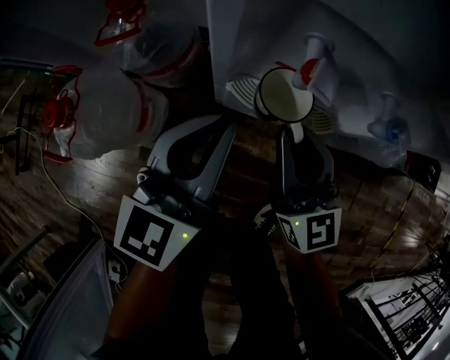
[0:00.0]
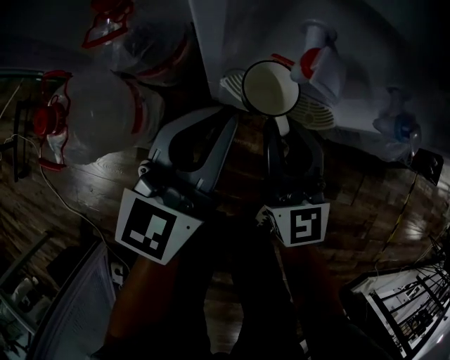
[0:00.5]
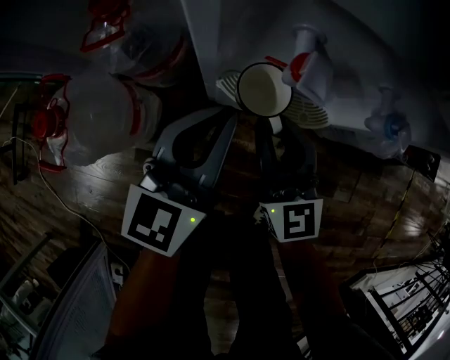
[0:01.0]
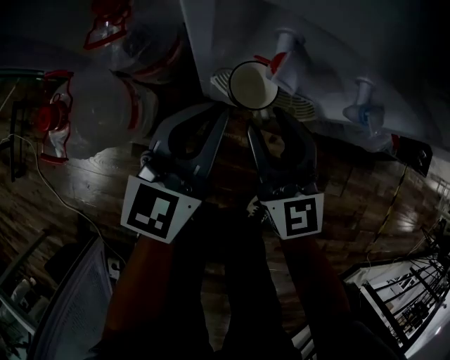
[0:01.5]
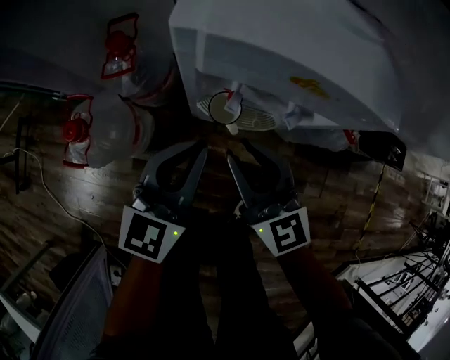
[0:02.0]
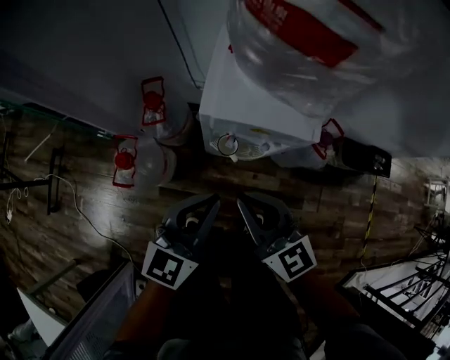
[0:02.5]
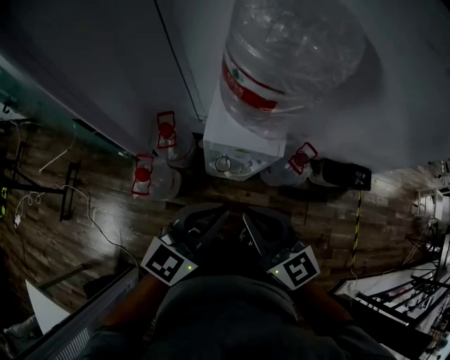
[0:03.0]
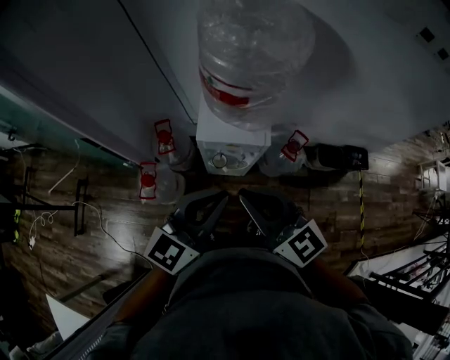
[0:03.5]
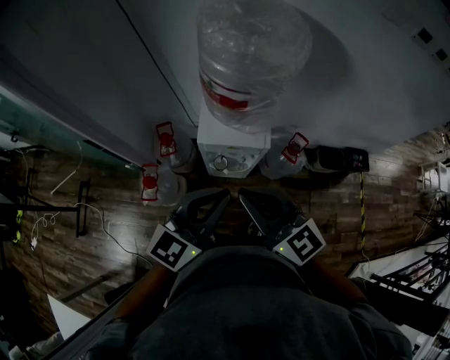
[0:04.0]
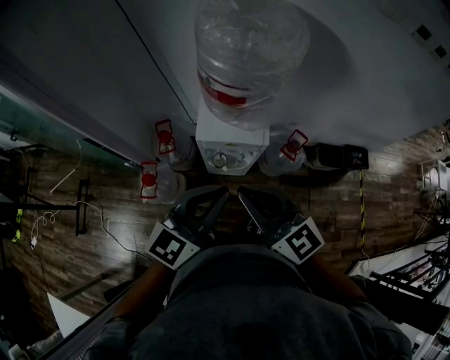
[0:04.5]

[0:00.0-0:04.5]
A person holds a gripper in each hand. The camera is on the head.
0:00.0 to 0:02.0: The two grippers go some 10 cm upward.
0:02.0 to 0:04.5: Both grippers travel together upward, some 50 cm. The right gripper closes, while the left gripper changes its angle by roughly 20 degrees.

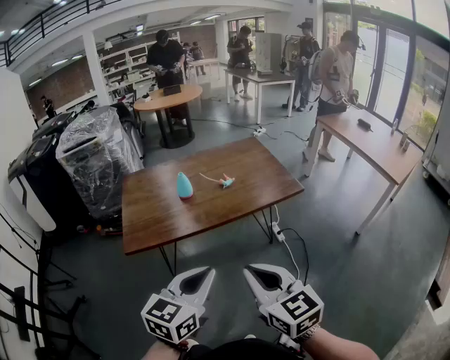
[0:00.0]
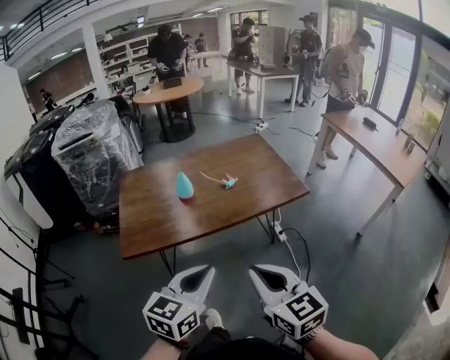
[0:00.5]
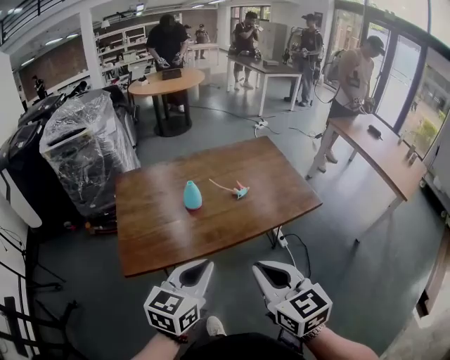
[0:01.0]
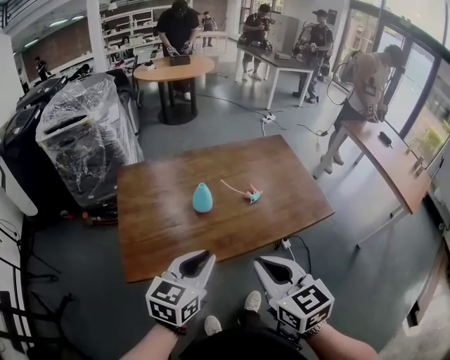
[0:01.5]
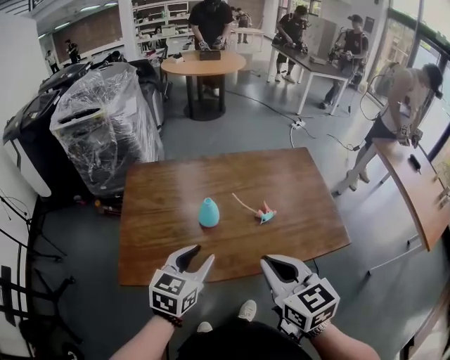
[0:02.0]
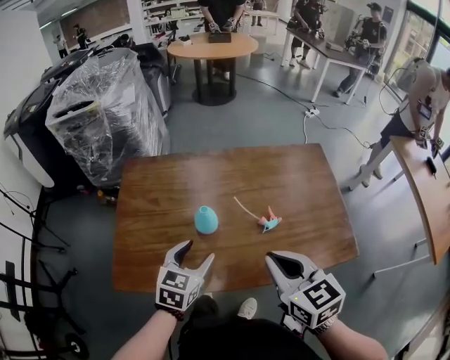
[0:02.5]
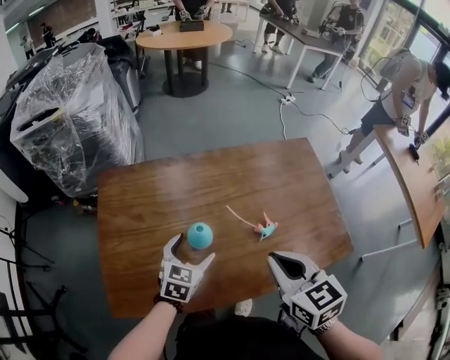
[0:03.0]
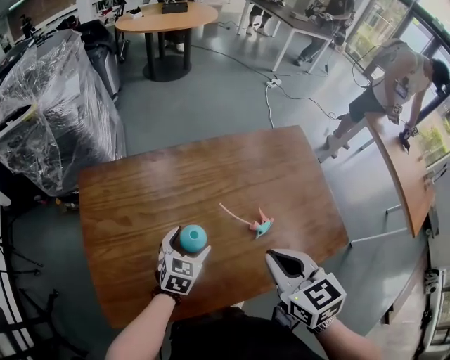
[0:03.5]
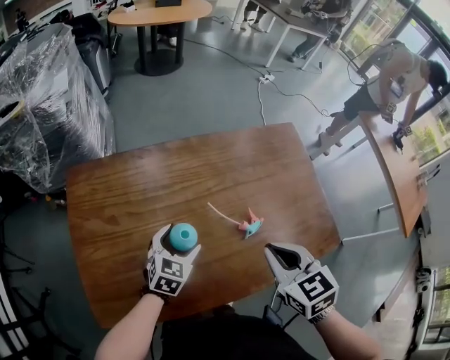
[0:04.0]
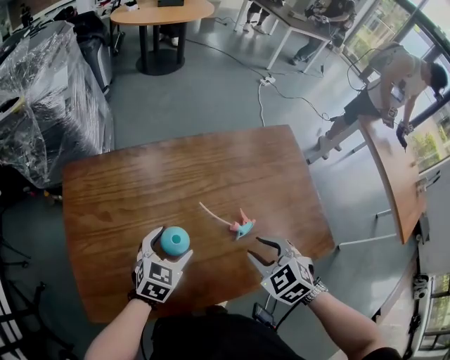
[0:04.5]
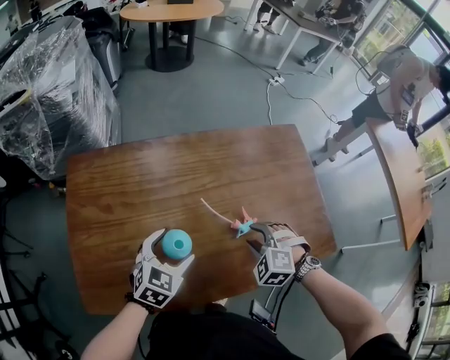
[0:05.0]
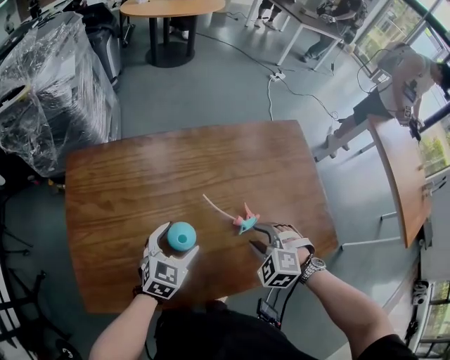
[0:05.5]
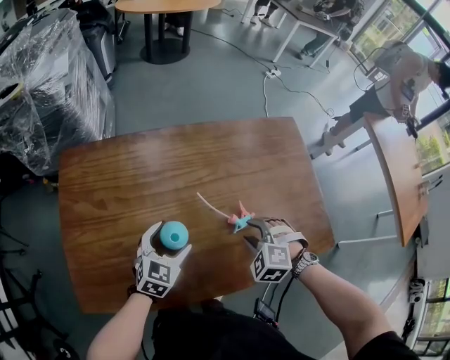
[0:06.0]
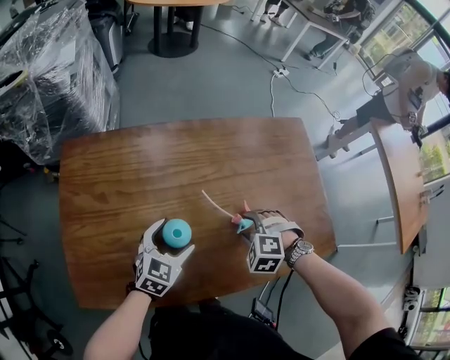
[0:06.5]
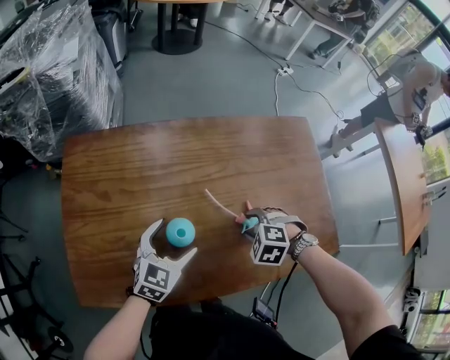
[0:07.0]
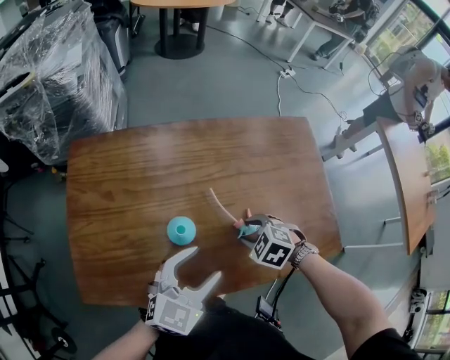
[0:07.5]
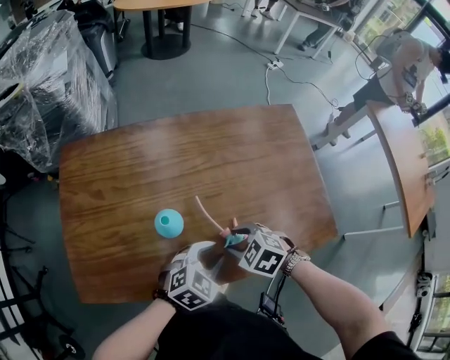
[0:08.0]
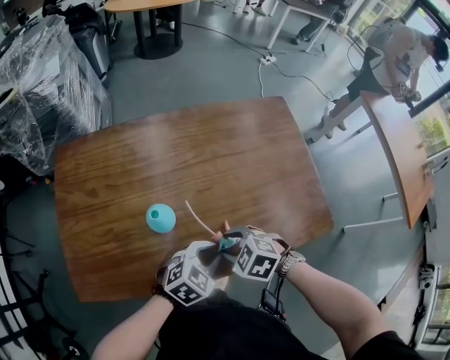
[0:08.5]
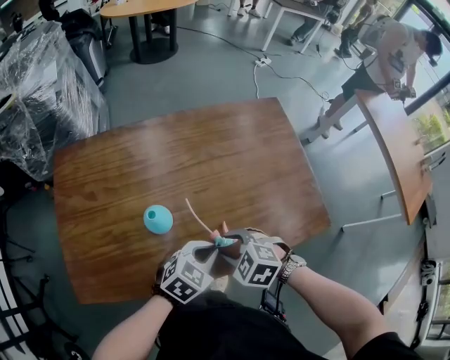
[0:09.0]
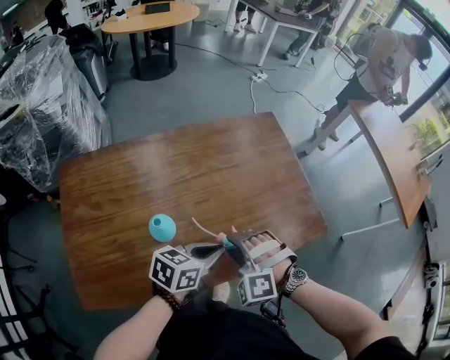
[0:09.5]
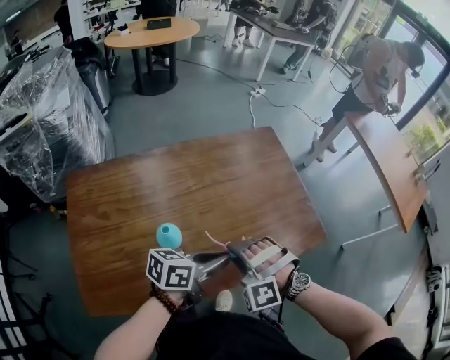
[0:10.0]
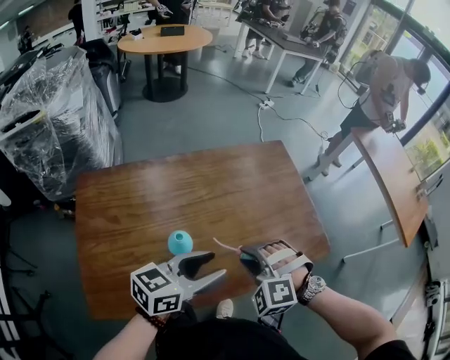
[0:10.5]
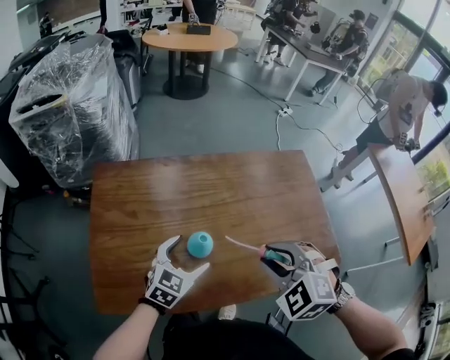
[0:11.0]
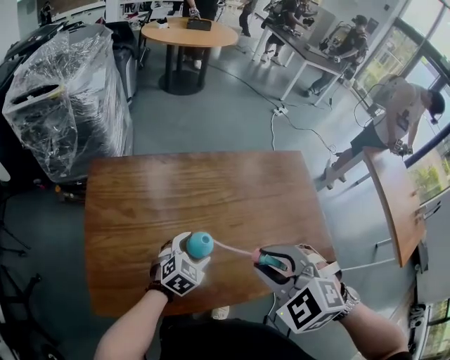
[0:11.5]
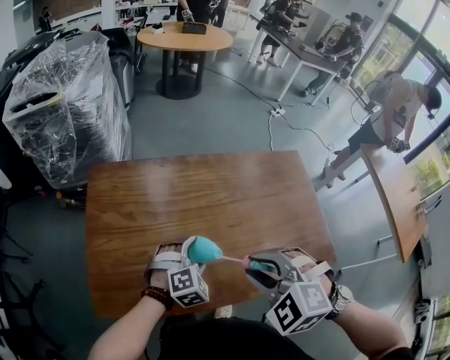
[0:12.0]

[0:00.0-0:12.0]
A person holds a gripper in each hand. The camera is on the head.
0:00.0 to 0:02.0: The two grippers go approximately 35 cm forward.
0:02.0 to 0:04.0: Both grippers travel together forward and downward, about 20 cm. The left gripper turns by about 20 degrees, and opens its fingers. Meanwhile the right gripper turns by approximately 20 degrees.
0:04.0 to 0:06.0: The right gripper is displaced downward by some 15 cm, rotates around the line of its fingers by approximately 60 degrees, counterclockwise from behind, and opens its fingers.
0:06.0 to 0:08.0: The right gripper moves about 10 cm, and rotates approximately 30 degrees. The left gripper travels upward and back again, some 10 cm each way, changes its angle by roughly 20 degrees, and closes.
0:08.0 to 0:10.0: The two grippers go some 10 cm upward. The left gripper points its fingers about 30 degrees further upward. The right gripper changes its angle by approximately 60 degrees.
0:10.0 to 0:12.0: The right gripper heads upward, covering roughly 10 cm, and changes its angle by some 30 degrees. The left gripper moves roughly 20 cm, points its fingers about 40 degrees further downward, and opens its fingers.

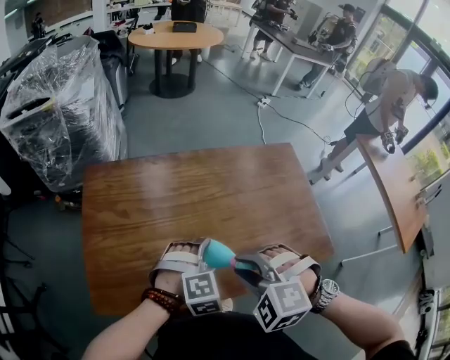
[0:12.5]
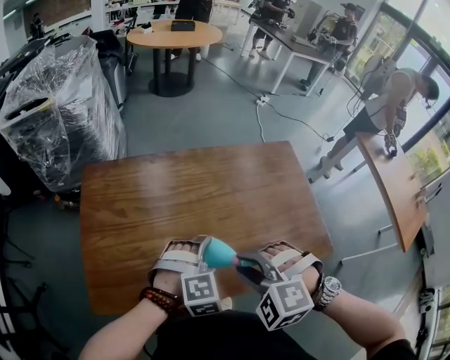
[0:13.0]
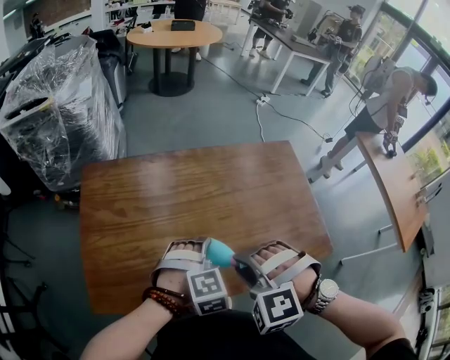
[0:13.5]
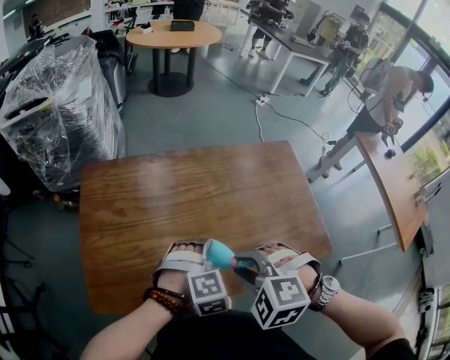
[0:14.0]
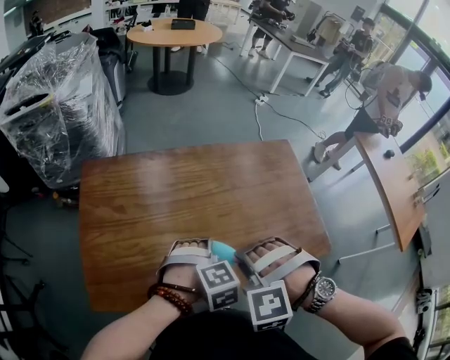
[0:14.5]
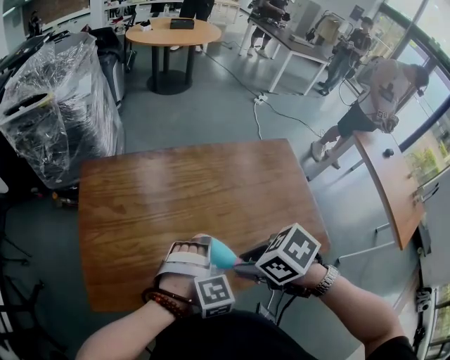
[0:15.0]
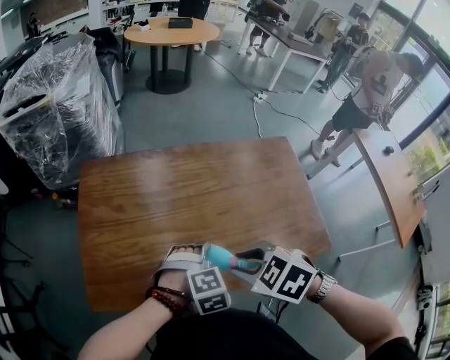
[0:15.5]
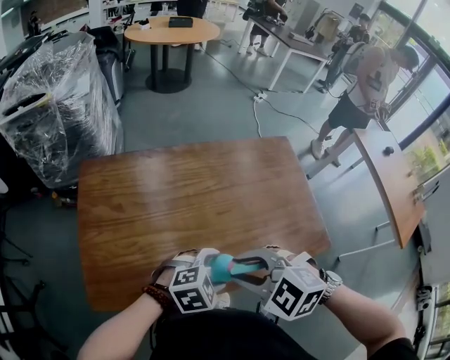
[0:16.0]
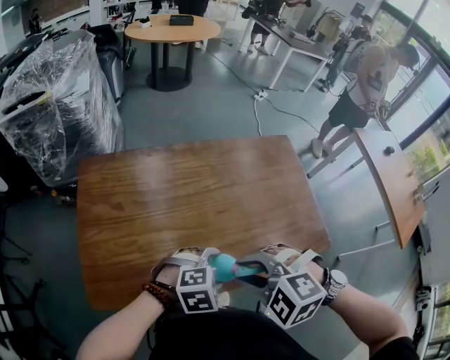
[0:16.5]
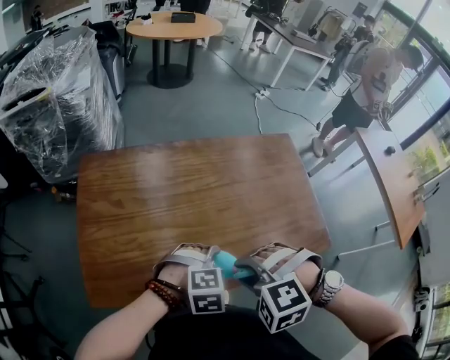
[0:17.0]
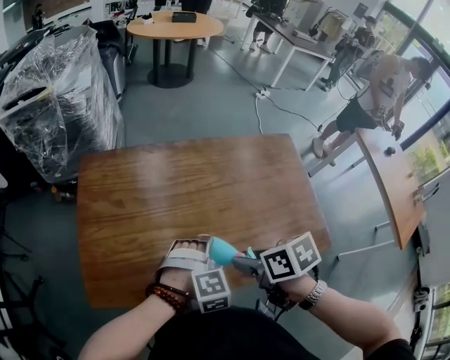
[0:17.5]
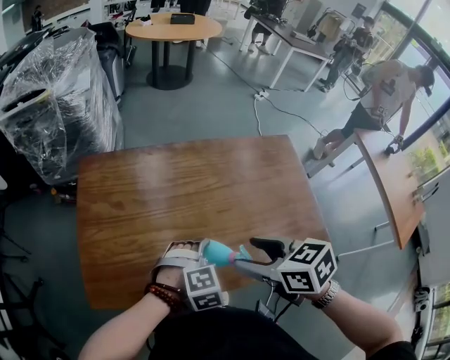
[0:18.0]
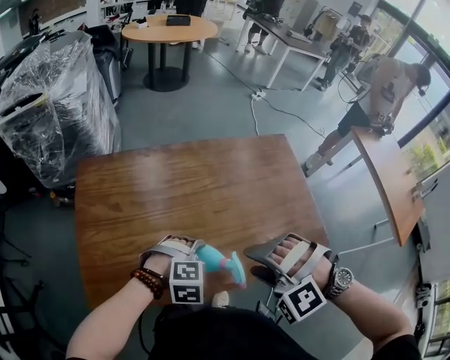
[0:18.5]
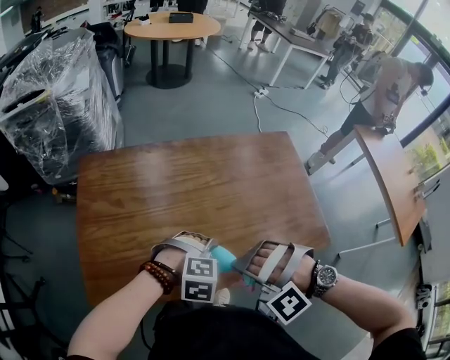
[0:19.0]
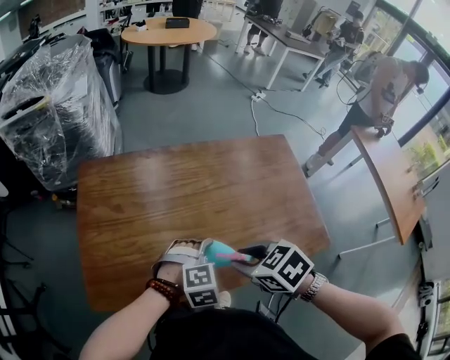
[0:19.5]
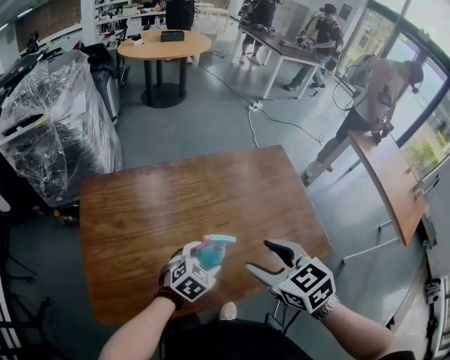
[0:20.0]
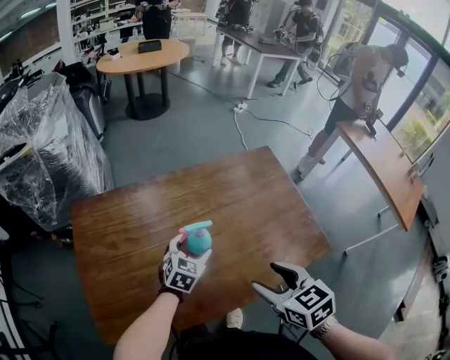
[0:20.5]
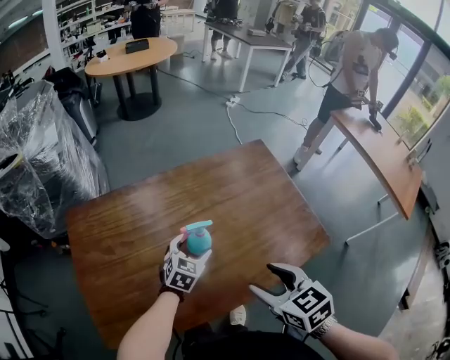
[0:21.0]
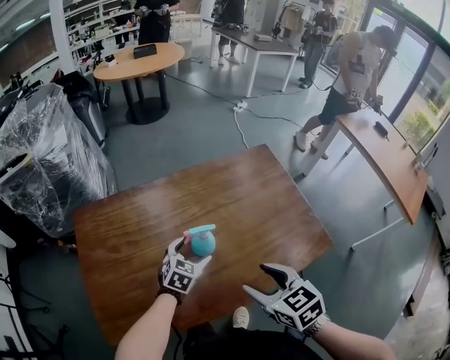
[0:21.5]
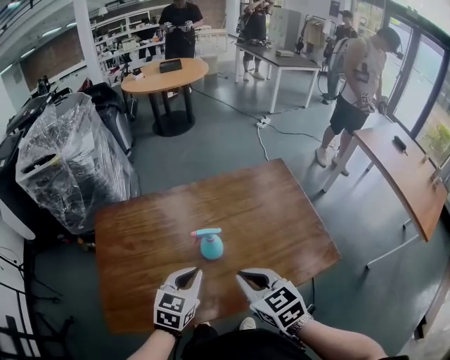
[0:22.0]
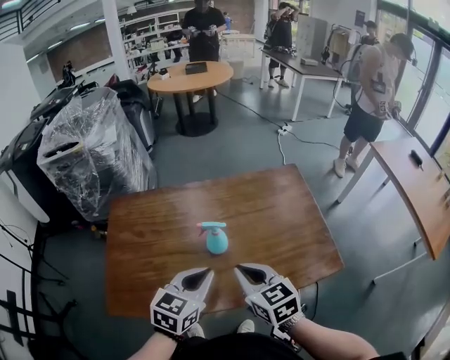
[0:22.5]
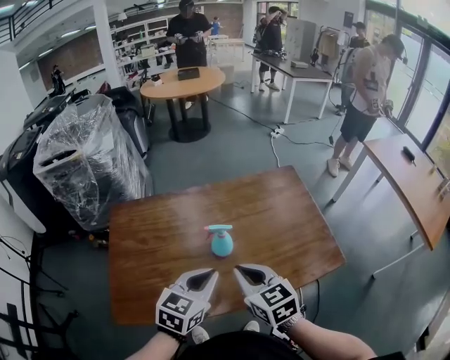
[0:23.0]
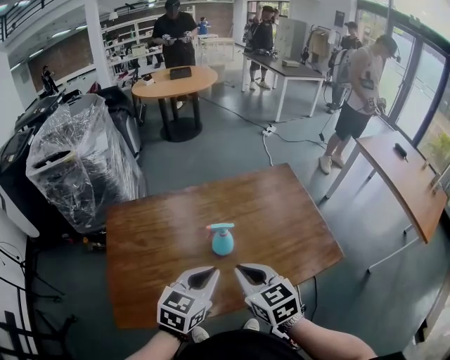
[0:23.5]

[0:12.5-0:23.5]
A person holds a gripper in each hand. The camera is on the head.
0:12.5 to 0:14.5: The right gripper rotates about 30 degrees.
0:14.5 to 0:16.0: The right gripper changes its angle by approximately 50 degrees, while the left gripper shifts by some 5 cm, and rotates roughly 30 degrees.
0:16.0 to 0:18.0: The right gripper ends up approximately 5 cm from where it was, twists about 50 degrees clockwise, seen from behind, and opens, while the left gripper shifts by approximately 5 cm, and turns by about 30 degrees.
0:18.0 to 0:20.0: The right gripper swivels approximately 20 degrees, and closes and opens again. Meanwhile the left gripper ends up some 5 cm from where it was, and changes its angle by roughly 30 degrees.
0:20.0 to 0:21.5: The right gripper changes place by roughly 5 cm; the left gripper travels forward by about 10 cm.
0:21.5 to 0:23.5: The left gripper shifts some 25 cm upward and backward, swivels some 20 degrees, and closes up; the right gripper travels to the left by roughly 5 cm, and closes its fingers.
